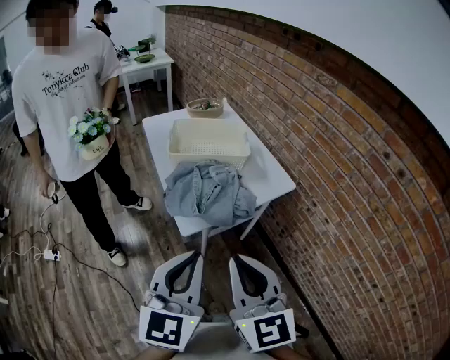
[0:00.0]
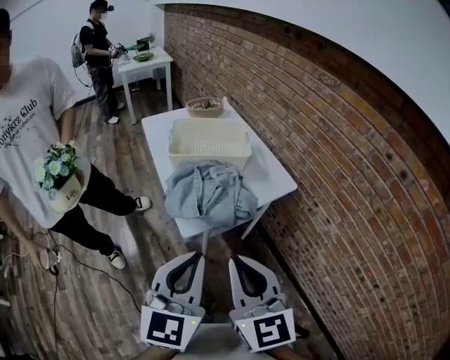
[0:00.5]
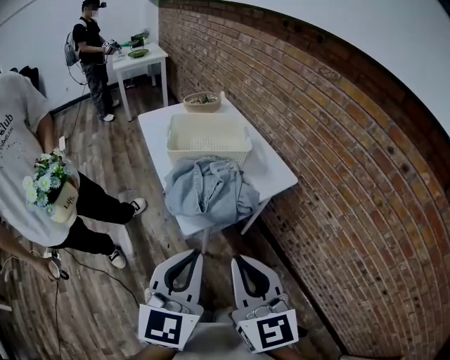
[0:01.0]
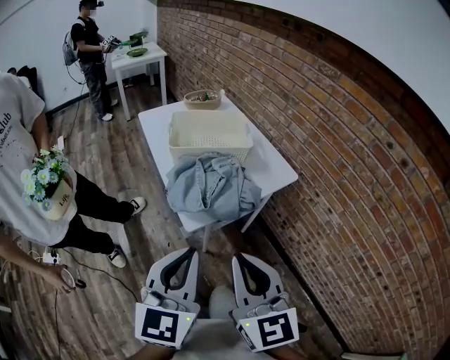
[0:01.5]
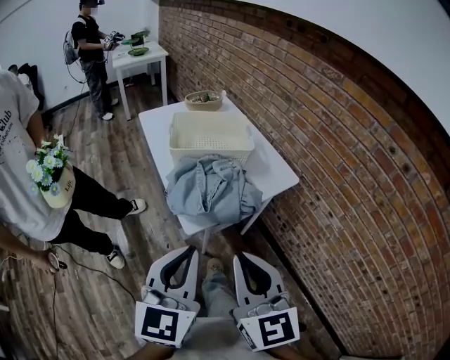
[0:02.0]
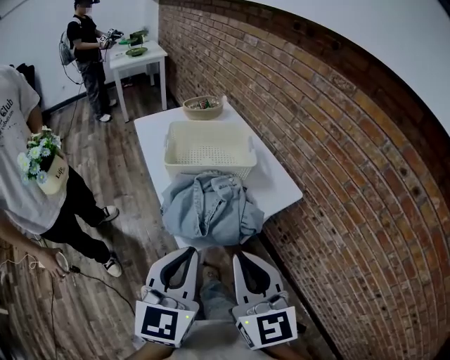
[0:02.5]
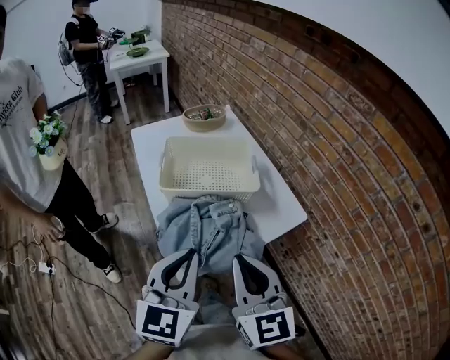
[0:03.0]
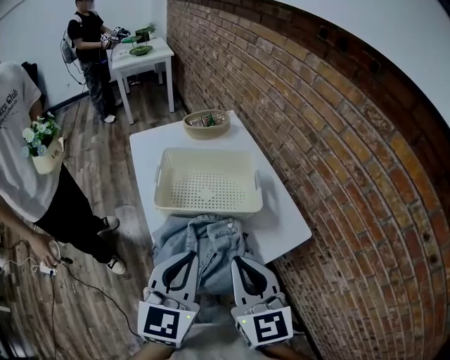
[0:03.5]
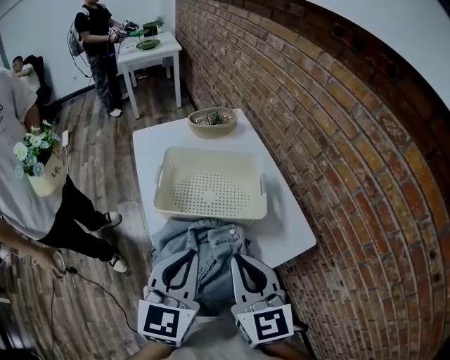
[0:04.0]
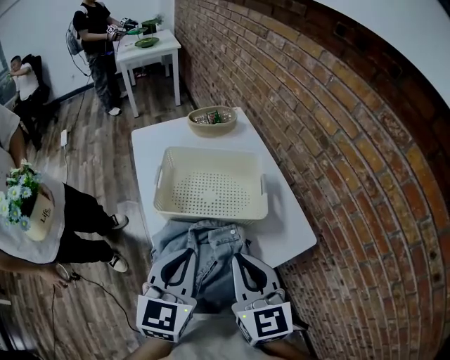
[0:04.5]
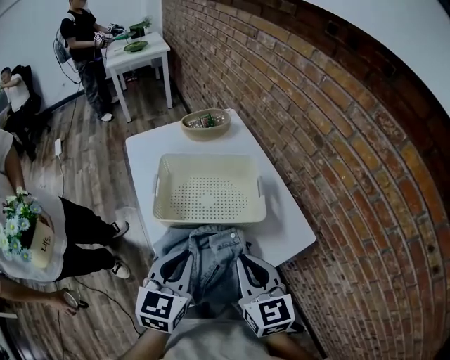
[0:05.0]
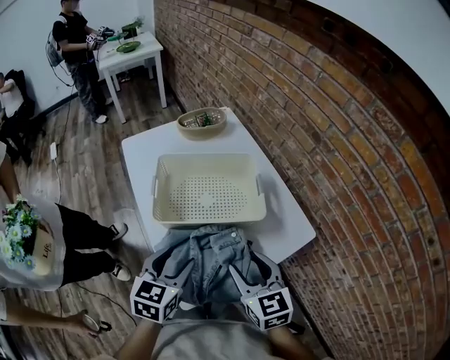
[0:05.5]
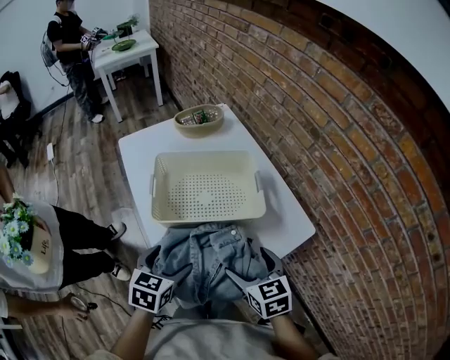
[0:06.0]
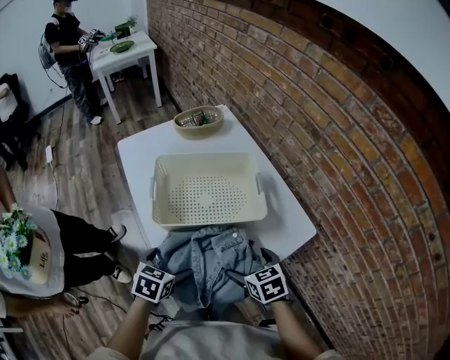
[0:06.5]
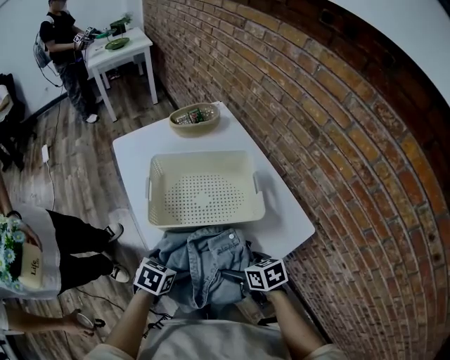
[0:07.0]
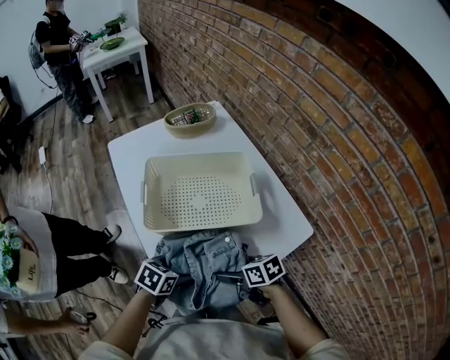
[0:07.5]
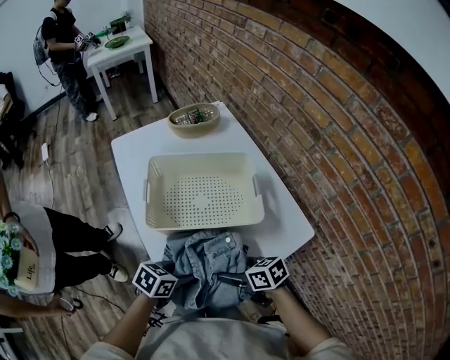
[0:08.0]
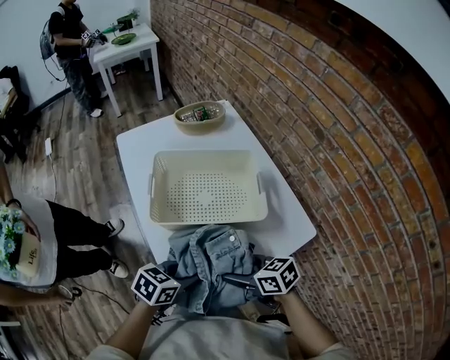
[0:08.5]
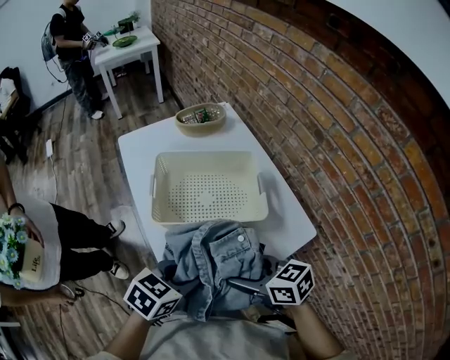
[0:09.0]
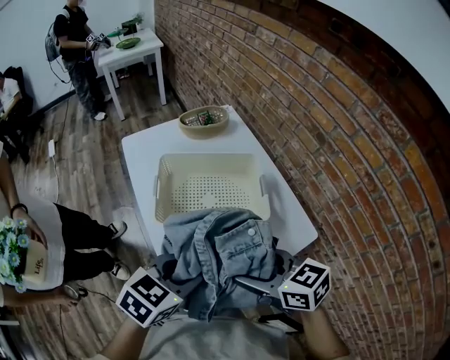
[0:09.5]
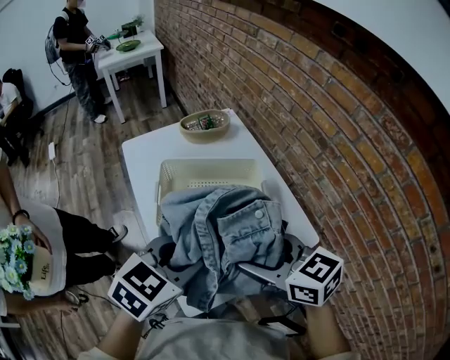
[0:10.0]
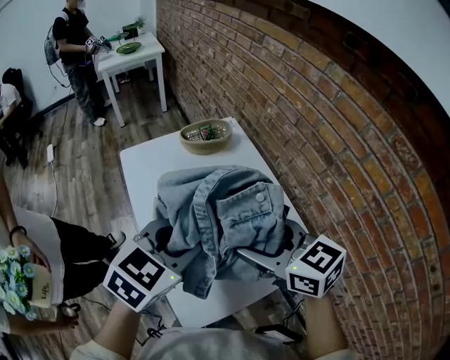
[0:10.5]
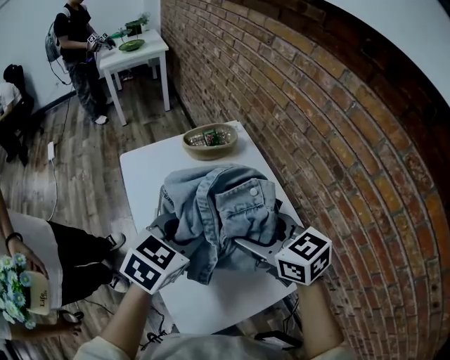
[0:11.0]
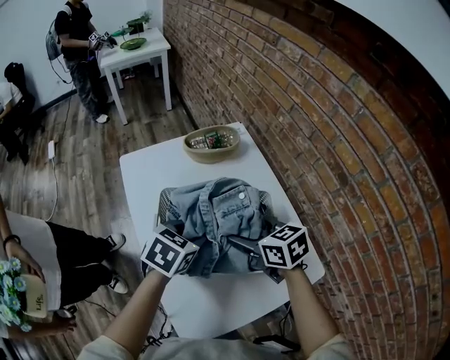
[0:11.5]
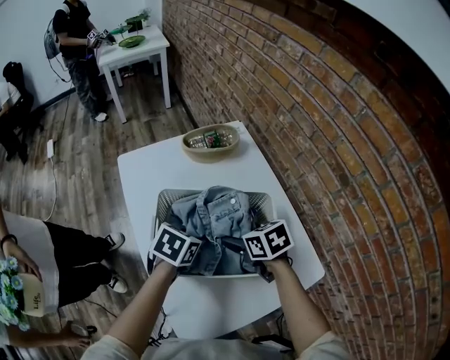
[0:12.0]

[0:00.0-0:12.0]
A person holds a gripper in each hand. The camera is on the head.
0:00.0 to 0:02.0: The left gripper moves about 5 cm.
0:02.0 to 0:04.0: The two grippers go some 30 cm forward.
0:04.0 to 0:06.0: The left gripper goes approximately 15 cm downward and to the left, turns by approximately 30 degrees, and opens its fingers, while the right gripper shifts approximately 15 cm downward, turns by some 30 degrees, and opens up.
0:06.0 to 0:08.0: The grippers both shift downward by approximately 10 cm. The left gripper turns by some 30 degrees, and closes its fingers; the right gripper rotates roughly 40 degrees.
0:08.0 to 0:10.0: The two grippers go about 25 cm upward. The right gripper changes its angle by approximately 30 degrees. The left gripper swivels about 30 degrees.
0:10.0 to 0:12.0: Both grippers travel together forward and downward, some 25 cm. The left gripper changes its angle by some 30 degrees. The right gripper rotates about 30 degrees.

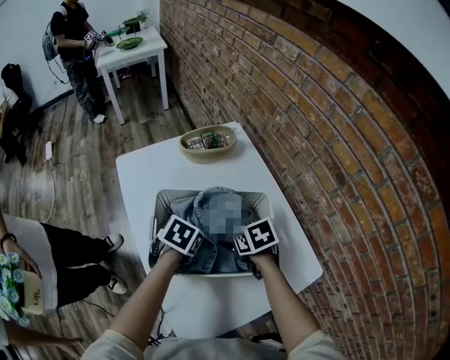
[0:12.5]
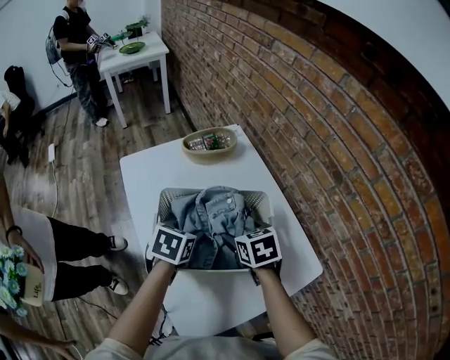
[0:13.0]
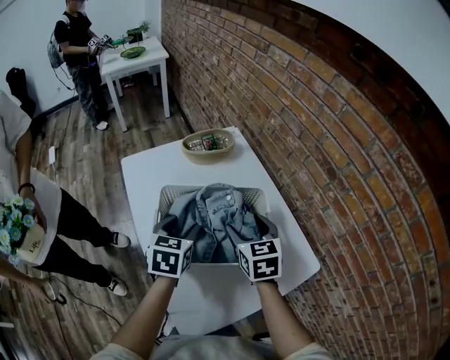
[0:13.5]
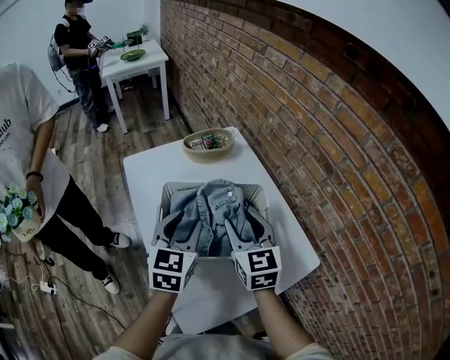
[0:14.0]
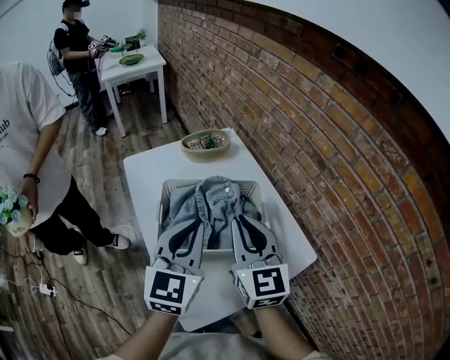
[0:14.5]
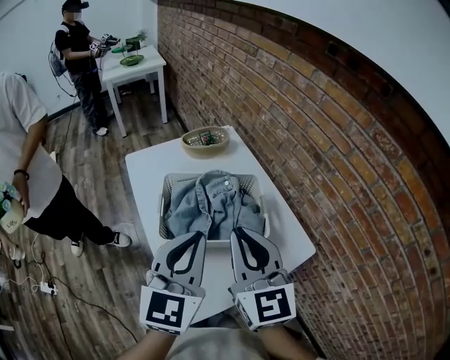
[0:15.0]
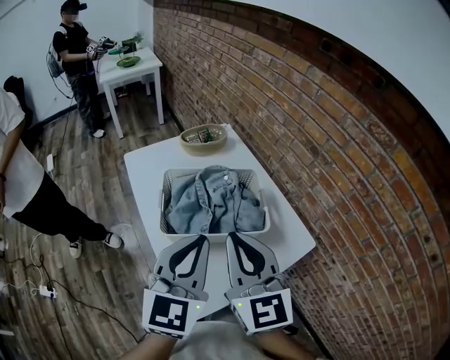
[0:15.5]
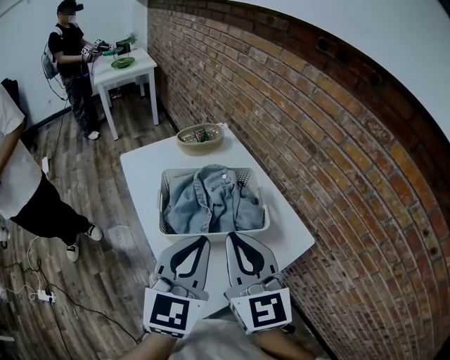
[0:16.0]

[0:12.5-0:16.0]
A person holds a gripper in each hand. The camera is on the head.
0:12.5 to 0:14.5: Both grippers travel together upward and backward, about 25 cm. The right gripper points its fingers roughly 50 degrees further upward, and closes its fingers. The left gripper angles its fingers upward, by roughly 60 degrees.
0:14.5 to 0:16.0: The two grippers go some 10 cm backward.

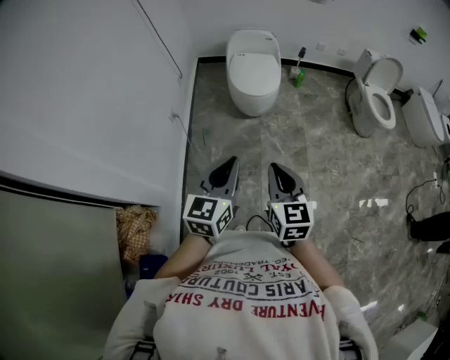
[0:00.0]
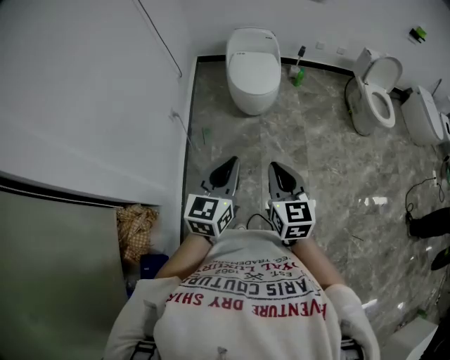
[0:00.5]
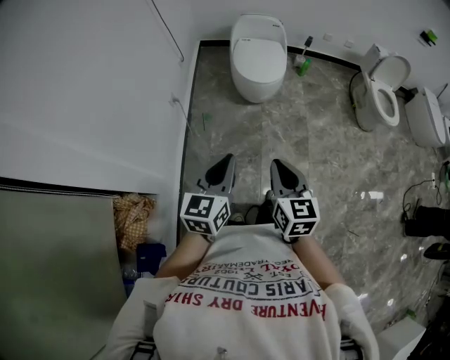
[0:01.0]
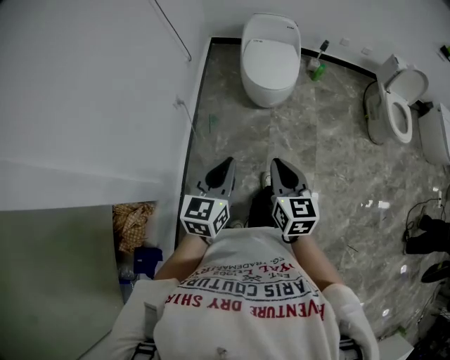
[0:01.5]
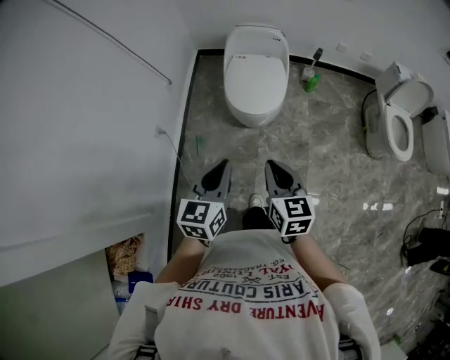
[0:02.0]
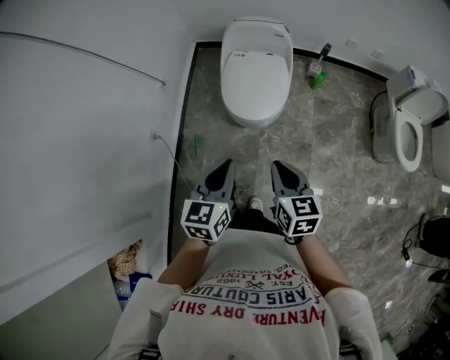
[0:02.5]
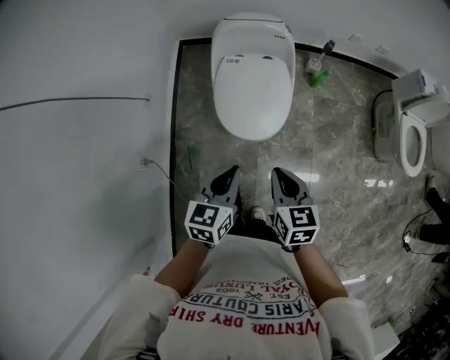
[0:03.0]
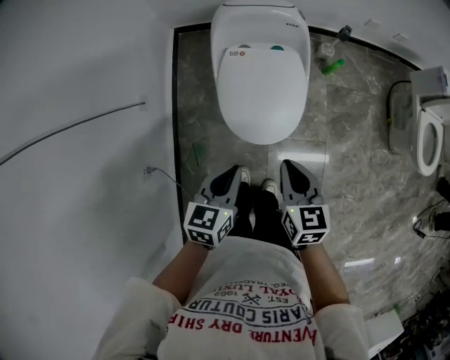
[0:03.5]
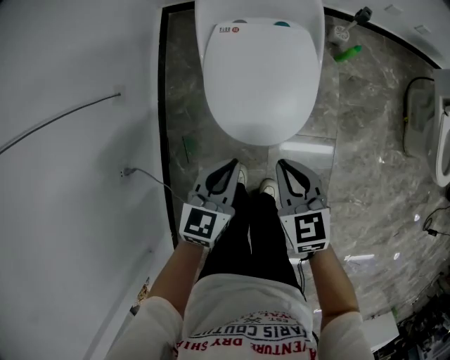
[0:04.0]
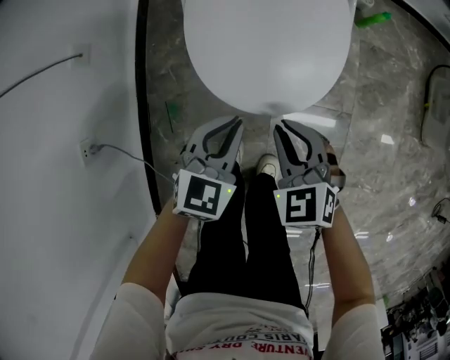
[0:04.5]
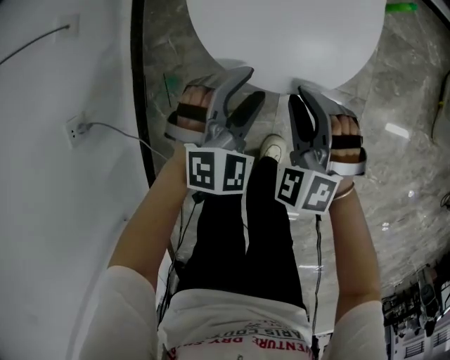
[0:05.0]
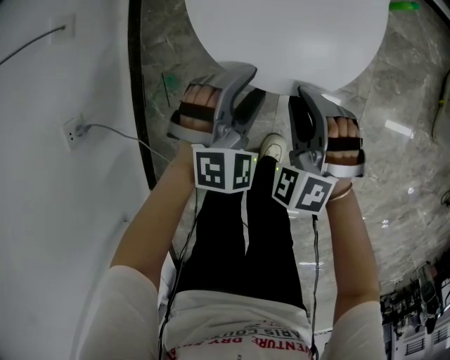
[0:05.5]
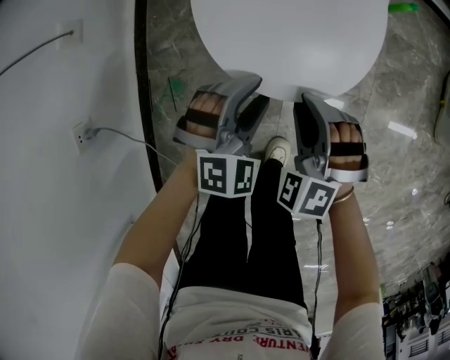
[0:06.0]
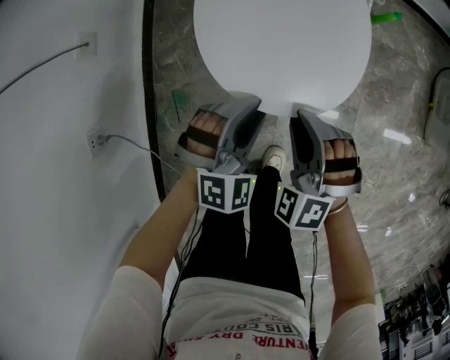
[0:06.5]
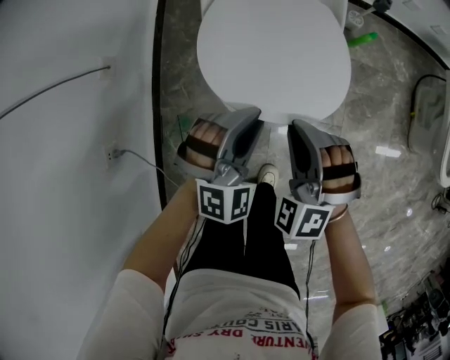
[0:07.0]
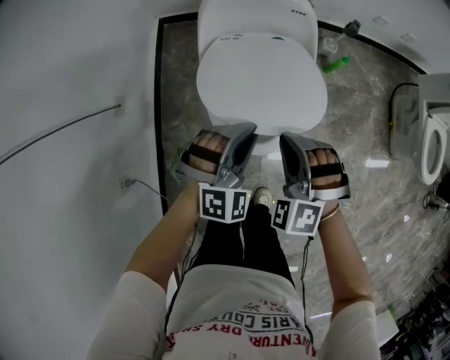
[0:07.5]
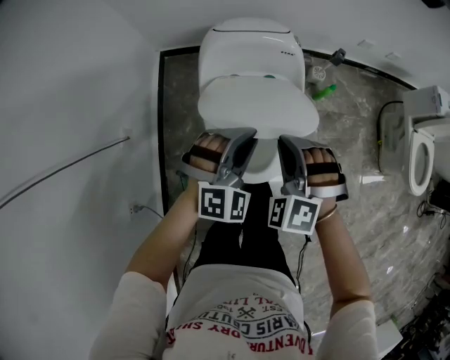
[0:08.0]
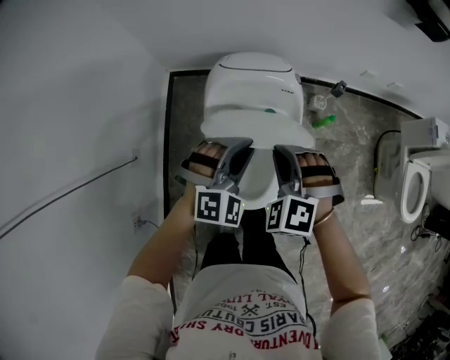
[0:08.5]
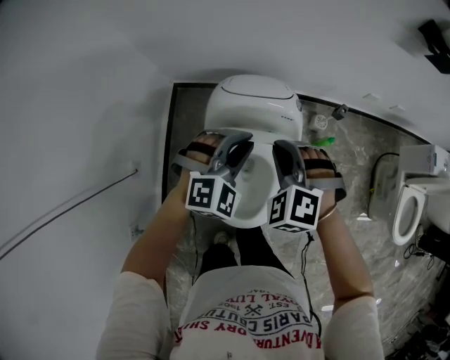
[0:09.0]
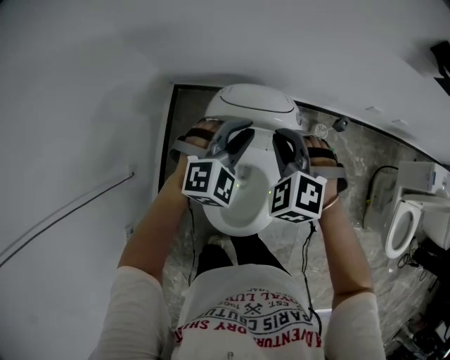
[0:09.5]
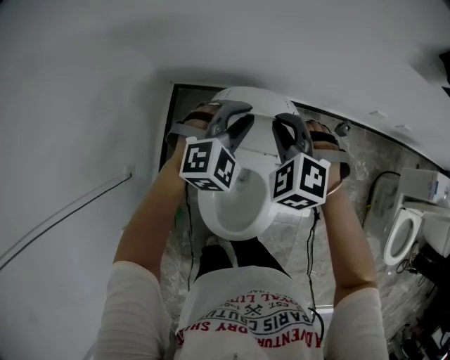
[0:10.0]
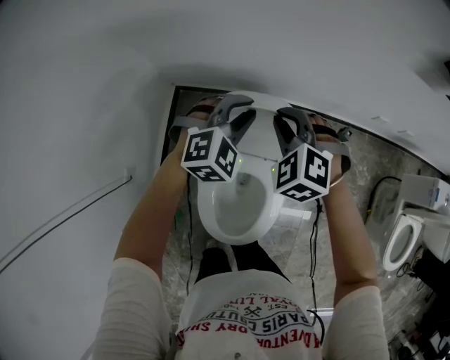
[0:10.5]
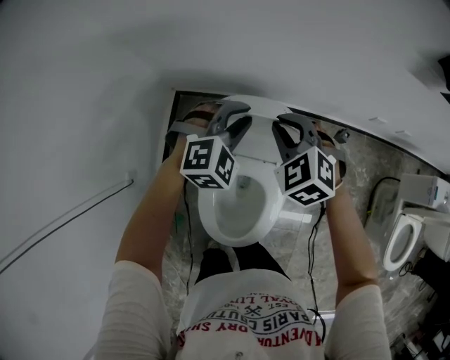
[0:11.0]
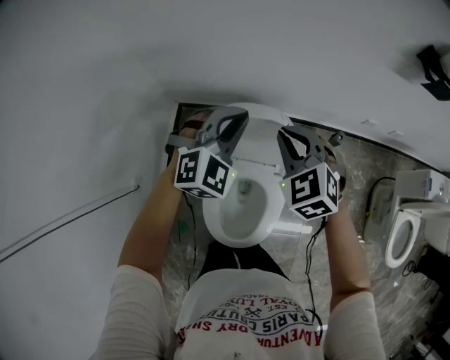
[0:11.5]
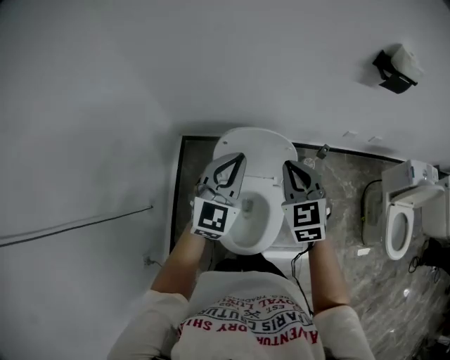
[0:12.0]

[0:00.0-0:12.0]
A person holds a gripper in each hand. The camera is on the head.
0:00.0 to 0:02.0: The grippers both shift forward by approximately 30 cm.
0:02.0 to 0:04.0: Both grippers travel together forward and downward, about 50 cm.
0:04.0 to 0:06.0: The two grippers go approximately 20 cm downward. The right gripper rolls counterclockwise, seen from behind, by roughly 60 degrees. The left gripper twists some 50 degrees clockwise, seen from behind, and opens up.
0:06.0 to 0:08.0: Both grippers travel together upward and forward, roughly 35 cm. The left gripper closes up.
0:08.0 to 0:10.0: The two grippers go roughly 30 cm forward.
0:10.0 to 0:12.0: Both grippers move upward and backward, roughly 25 cm. The right gripper turns by some 50 degrees, while the left gripper angles its fingers upward, by approximately 30 degrees.
